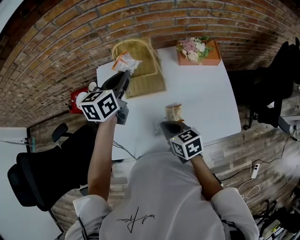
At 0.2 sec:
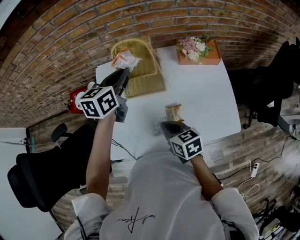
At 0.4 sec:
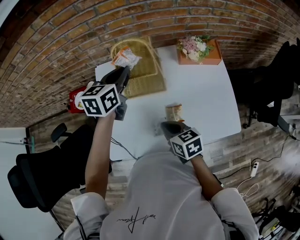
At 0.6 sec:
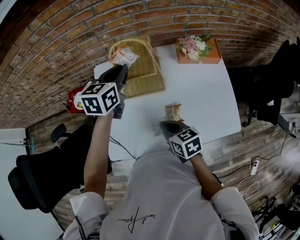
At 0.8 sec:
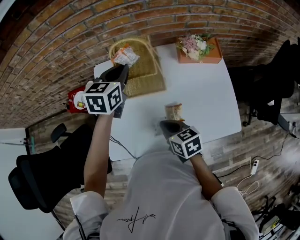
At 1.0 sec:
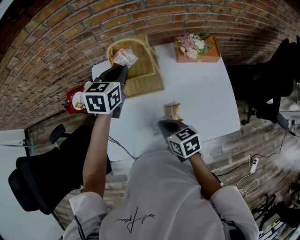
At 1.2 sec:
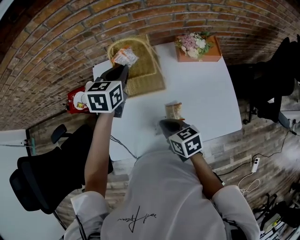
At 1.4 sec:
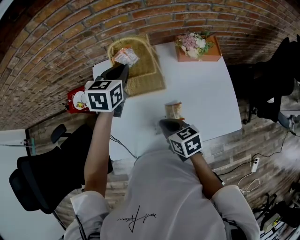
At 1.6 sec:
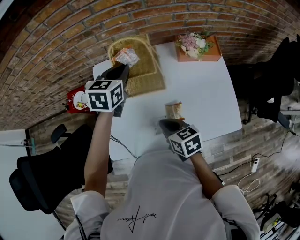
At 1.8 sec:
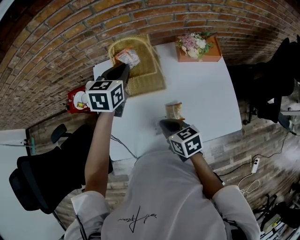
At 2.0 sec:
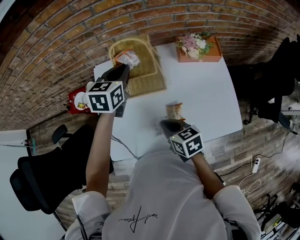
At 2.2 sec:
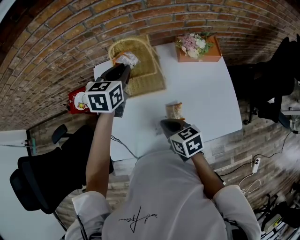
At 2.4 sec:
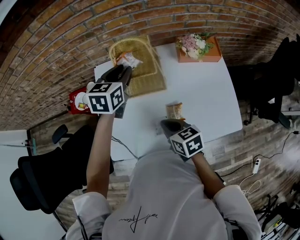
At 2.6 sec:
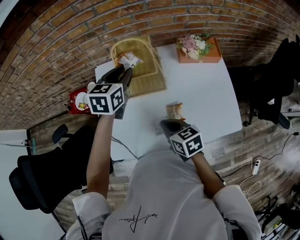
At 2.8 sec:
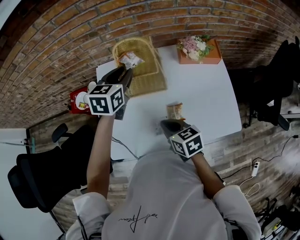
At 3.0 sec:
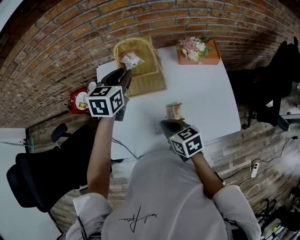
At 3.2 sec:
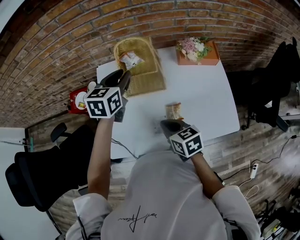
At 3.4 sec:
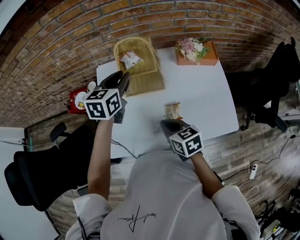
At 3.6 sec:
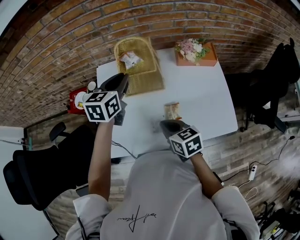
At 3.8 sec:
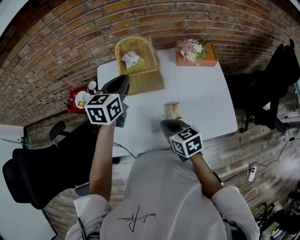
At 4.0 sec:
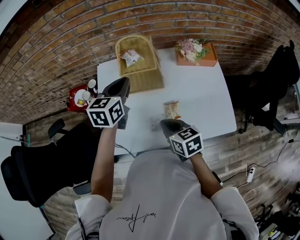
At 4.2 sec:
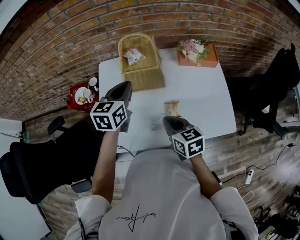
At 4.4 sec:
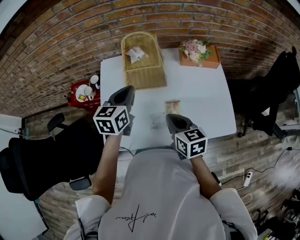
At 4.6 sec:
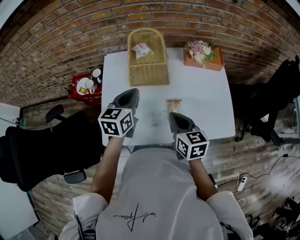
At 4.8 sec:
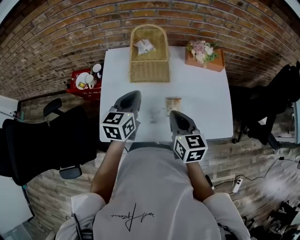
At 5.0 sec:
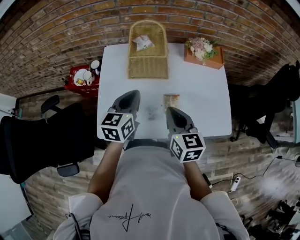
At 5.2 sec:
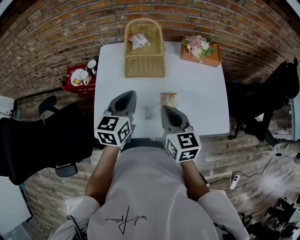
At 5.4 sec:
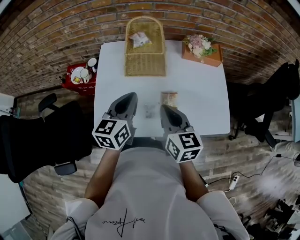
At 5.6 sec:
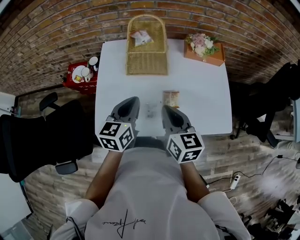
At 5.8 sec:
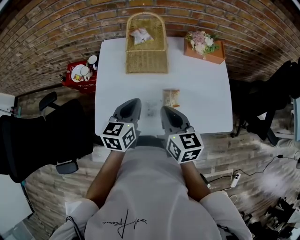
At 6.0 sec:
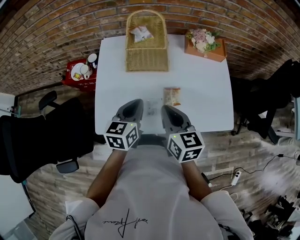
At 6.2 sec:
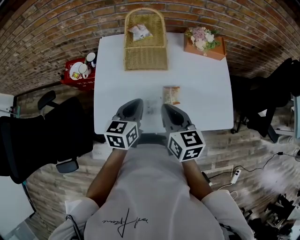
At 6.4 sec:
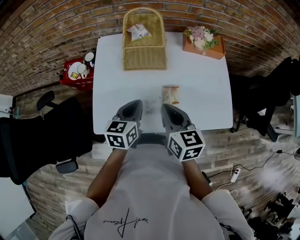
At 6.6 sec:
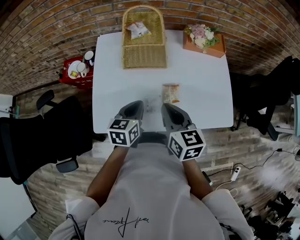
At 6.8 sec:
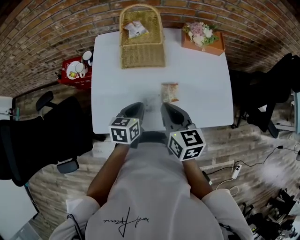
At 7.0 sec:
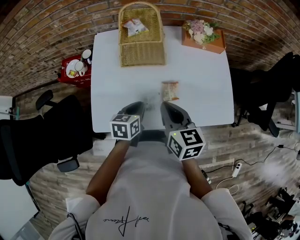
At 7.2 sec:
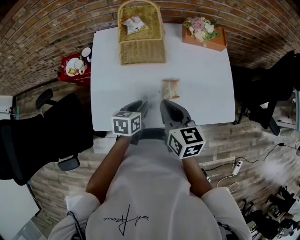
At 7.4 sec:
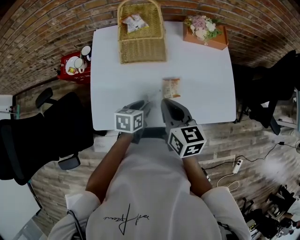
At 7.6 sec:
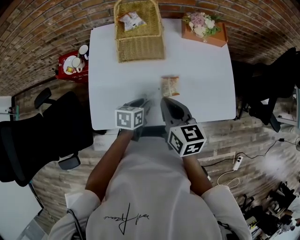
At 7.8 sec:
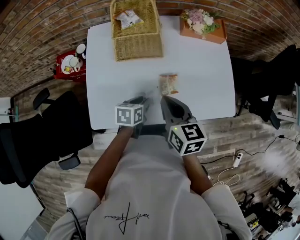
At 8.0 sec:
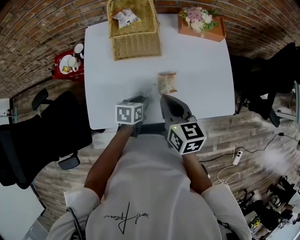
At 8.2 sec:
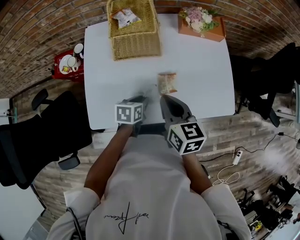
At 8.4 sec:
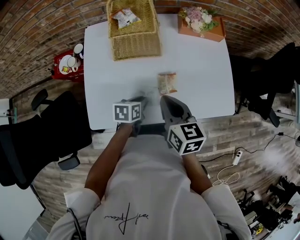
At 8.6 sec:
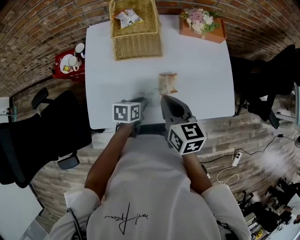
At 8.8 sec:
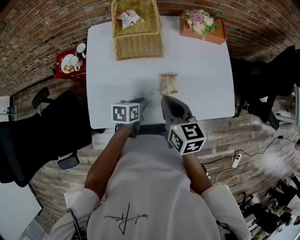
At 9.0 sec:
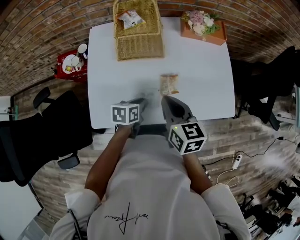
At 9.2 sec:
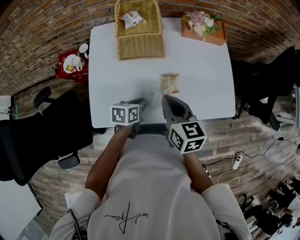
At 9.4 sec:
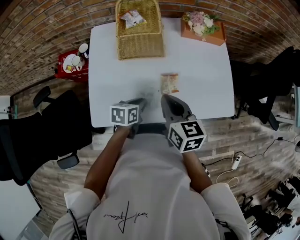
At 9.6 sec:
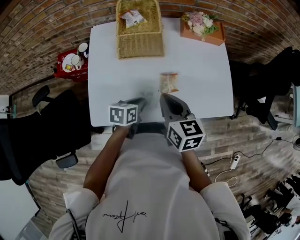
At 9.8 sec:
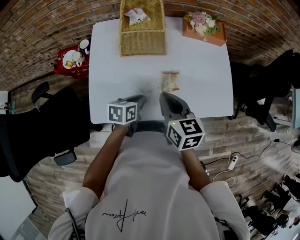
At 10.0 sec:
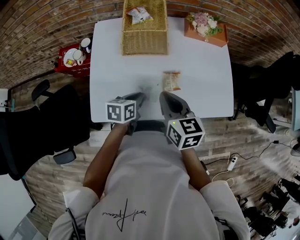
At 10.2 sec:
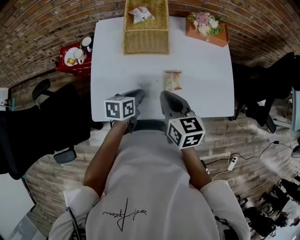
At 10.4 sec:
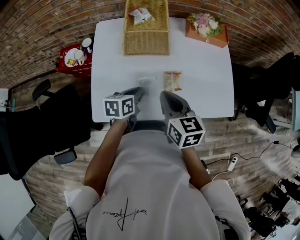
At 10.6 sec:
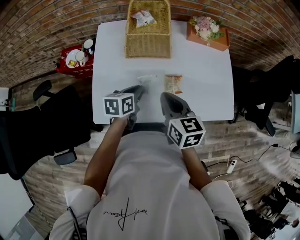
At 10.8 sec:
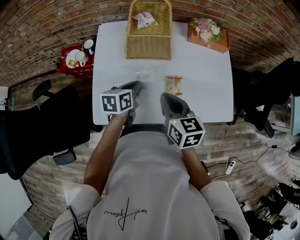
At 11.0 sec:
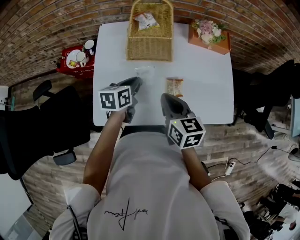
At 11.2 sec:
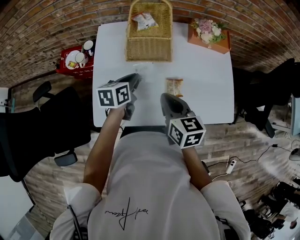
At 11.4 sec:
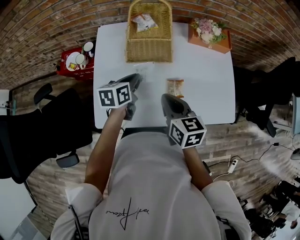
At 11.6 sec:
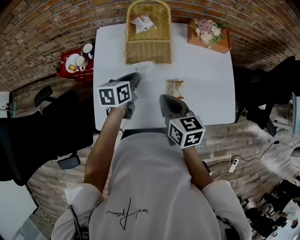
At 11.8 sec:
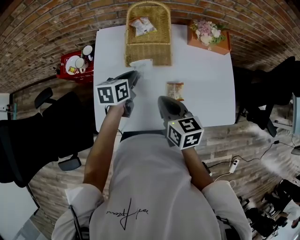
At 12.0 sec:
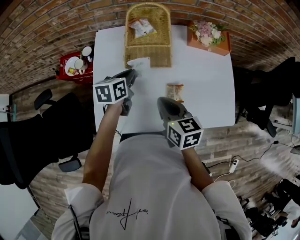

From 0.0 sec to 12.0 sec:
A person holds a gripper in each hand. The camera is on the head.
From 0.0 sec to 1.6 sec: The grippers make only small movements.
From 1.6 sec to 3.0 sec: The left gripper opens its fingers.
From 3.0 sec to 4.4 sec: The left gripper goes about 10 cm backward, and closes its fingers. Meanwhile the right gripper shifts by about 5 cm.
From 4.4 sec to 6.0 sec: The left gripper heads backward and downward, covering some 10 cm.
From 6.0 sec to 7.6 sec: The left gripper heads downward, covering approximately 15 cm, changes its angle by roughly 30 degrees, and opens.
From 7.6 sec to 9.0 sec: The grippers move only a little.
From 9.0 sec to 10.4 sec: The left gripper travels upward by approximately 5 cm.
From 10.4 sec to 12.0 sec: The left gripper goes approximately 15 cm forward and to the left.

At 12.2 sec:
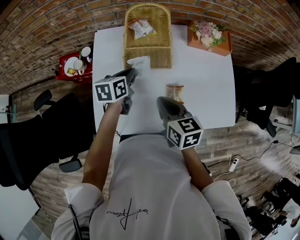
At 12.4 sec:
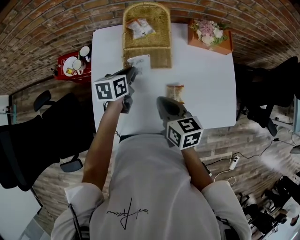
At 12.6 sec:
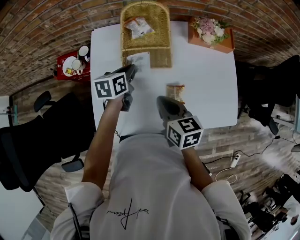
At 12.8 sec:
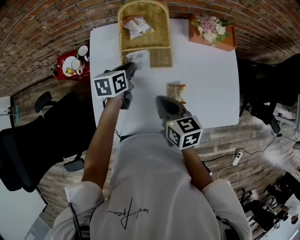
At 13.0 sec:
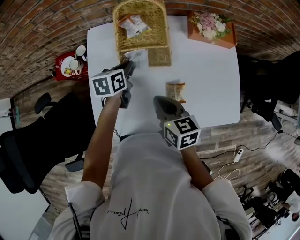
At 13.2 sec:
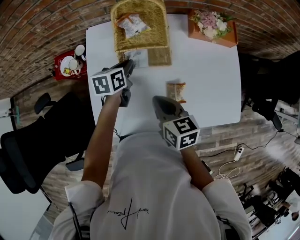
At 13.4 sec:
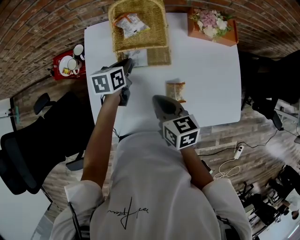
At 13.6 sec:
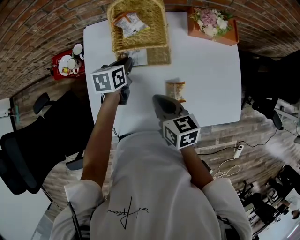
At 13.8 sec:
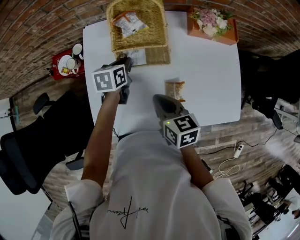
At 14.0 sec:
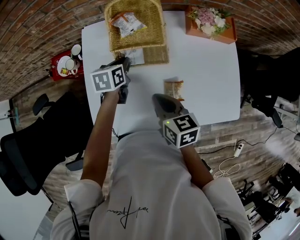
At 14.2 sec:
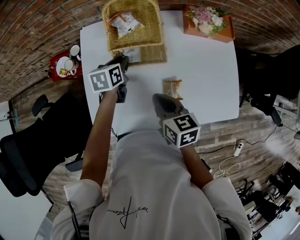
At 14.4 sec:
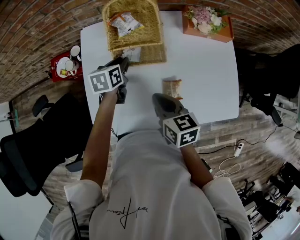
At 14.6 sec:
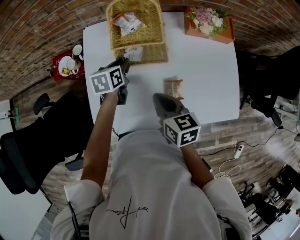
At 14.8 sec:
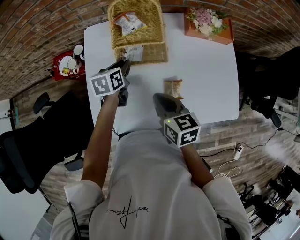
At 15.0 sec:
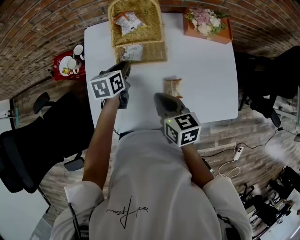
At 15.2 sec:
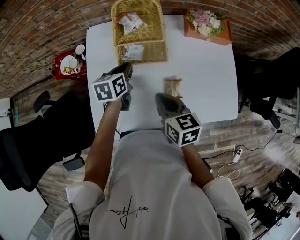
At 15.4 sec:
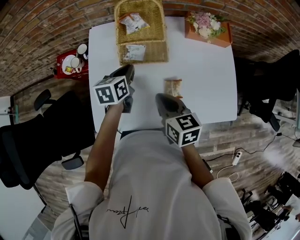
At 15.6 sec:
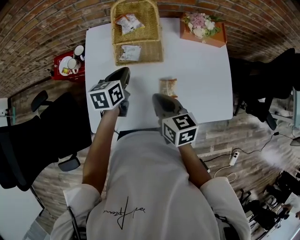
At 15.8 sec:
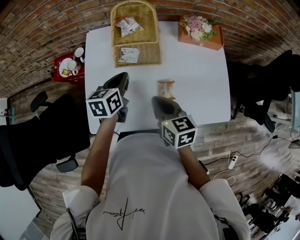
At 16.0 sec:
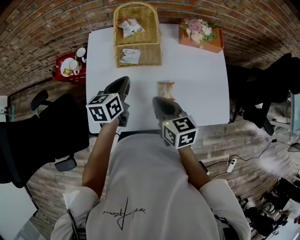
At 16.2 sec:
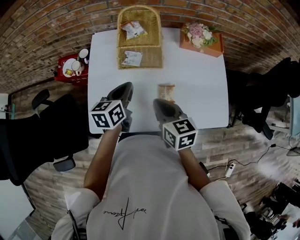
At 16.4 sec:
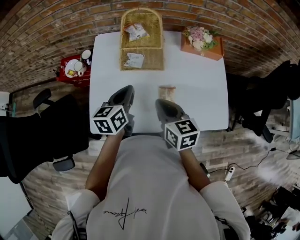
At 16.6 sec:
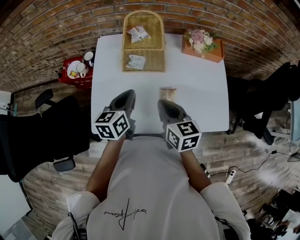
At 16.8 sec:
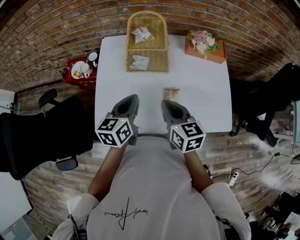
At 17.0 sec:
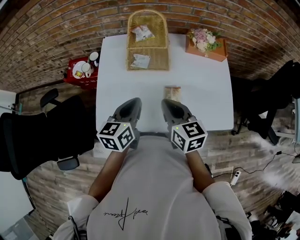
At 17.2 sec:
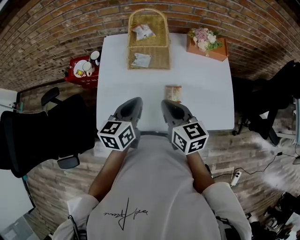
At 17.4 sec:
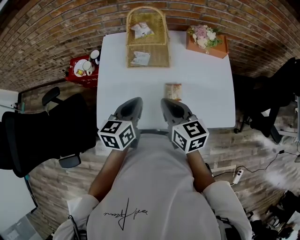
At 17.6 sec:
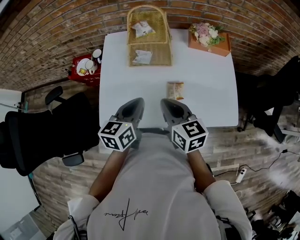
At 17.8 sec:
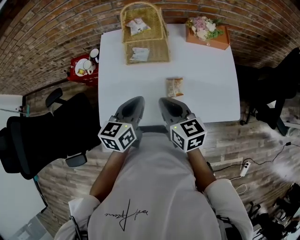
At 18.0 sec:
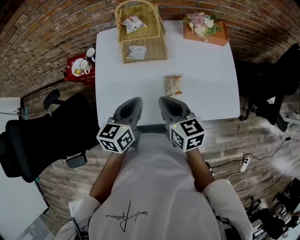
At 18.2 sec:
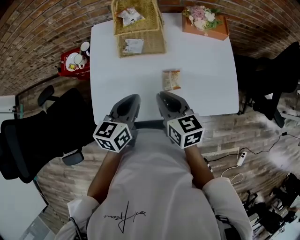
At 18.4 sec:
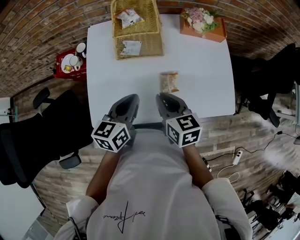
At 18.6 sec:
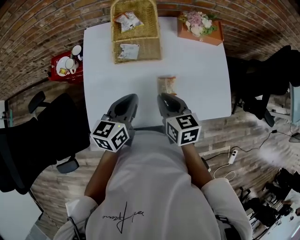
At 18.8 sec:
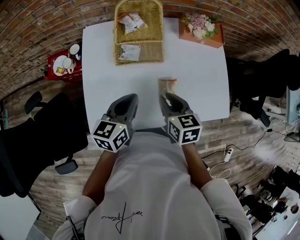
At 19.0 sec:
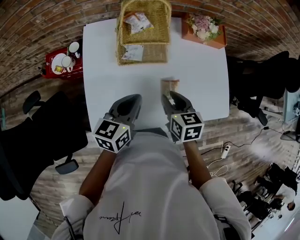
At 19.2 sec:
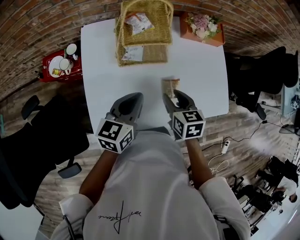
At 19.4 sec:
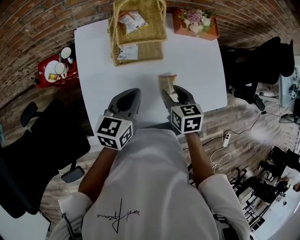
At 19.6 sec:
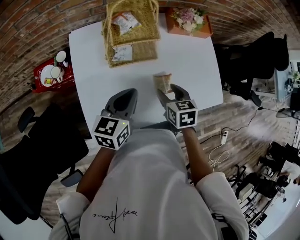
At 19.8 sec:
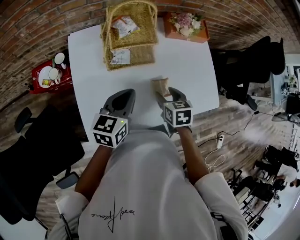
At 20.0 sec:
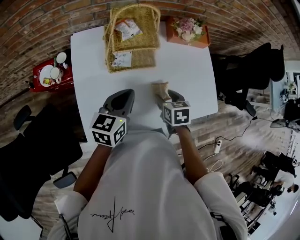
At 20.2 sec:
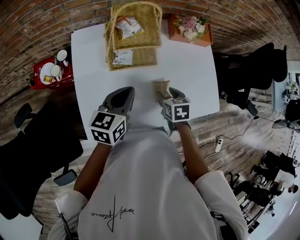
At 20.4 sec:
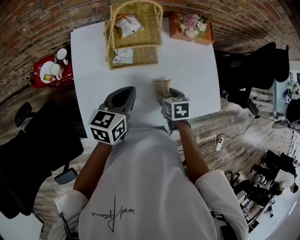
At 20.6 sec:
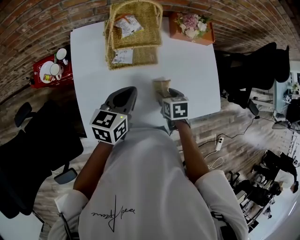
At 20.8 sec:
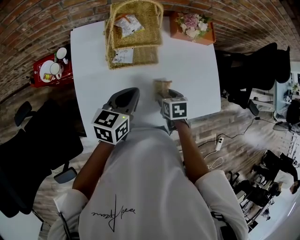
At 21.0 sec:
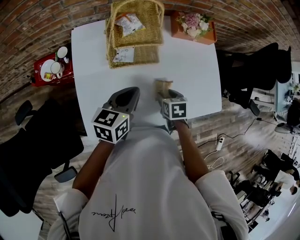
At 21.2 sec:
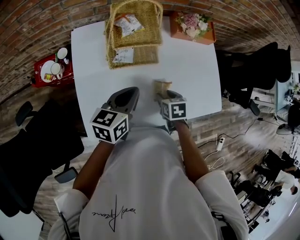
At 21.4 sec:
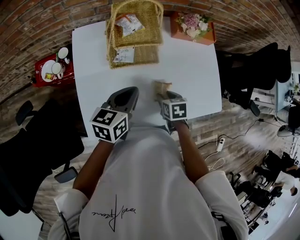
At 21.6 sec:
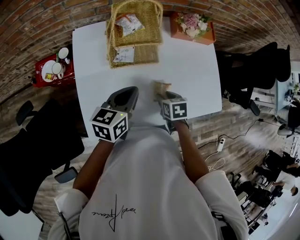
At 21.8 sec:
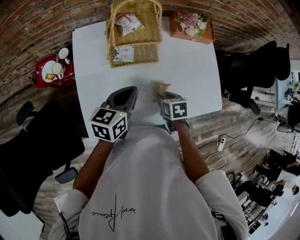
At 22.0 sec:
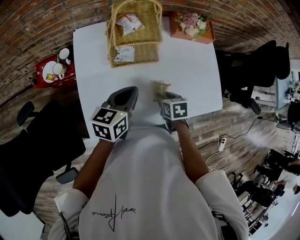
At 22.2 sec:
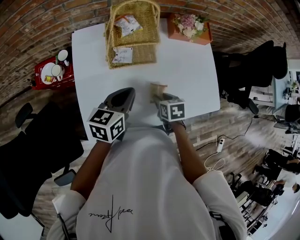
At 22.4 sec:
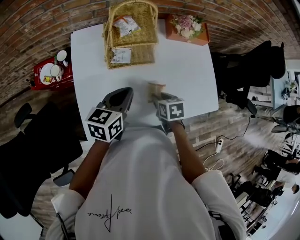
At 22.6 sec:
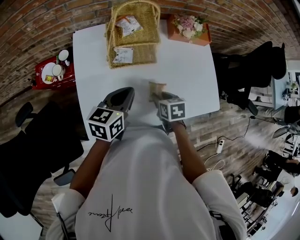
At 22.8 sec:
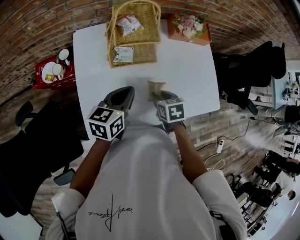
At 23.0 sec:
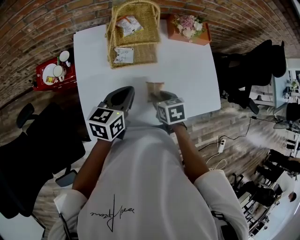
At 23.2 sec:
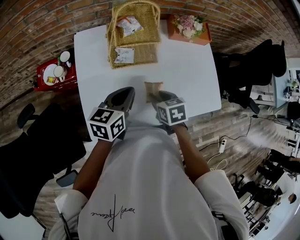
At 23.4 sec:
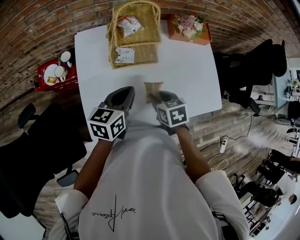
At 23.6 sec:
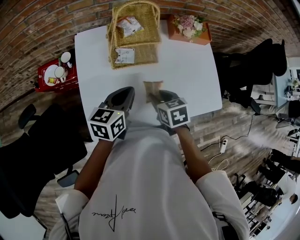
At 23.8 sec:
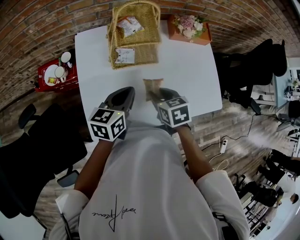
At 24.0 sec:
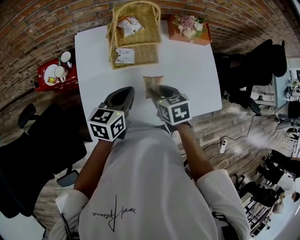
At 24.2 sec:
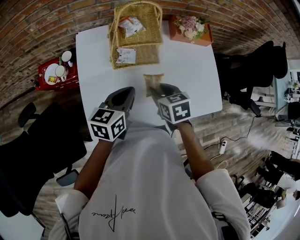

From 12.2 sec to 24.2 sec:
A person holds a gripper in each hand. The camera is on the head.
From 12.2 sec to 13.8 sec: The left gripper ends up approximately 5 cm from where it was.
From 13.8 sec to 15.2 sec: The grippers make only small movements.
From 15.2 sec to 16.6 sec: The left gripper is displaced backward and upward by some 15 cm.
From 16.6 sec to 18.2 sec: The left gripper goes about 5 cm backward.
From 18.2 sec to 19.8 sec: The left gripper shifts roughly 5 cm forward. The right gripper travels downward and forward by some 10 cm, rotates roughly 30 degrees, and opens its fingers.
From 19.8 sec to 21.2 sec: The right gripper travels downward by some 5 cm.
From 21.2 sec to 22.6 sec: The grippers stay close to where they were, moving slightly.
From 22.6 sec to 24.2 sec: The right gripper moves upward and to the left, roughly 10 cm.
